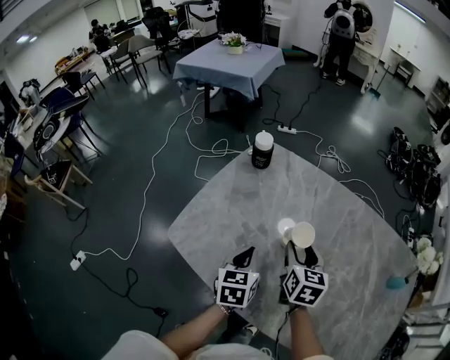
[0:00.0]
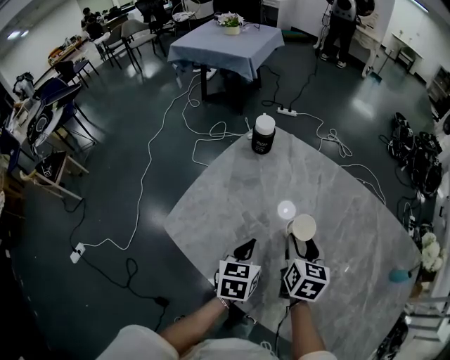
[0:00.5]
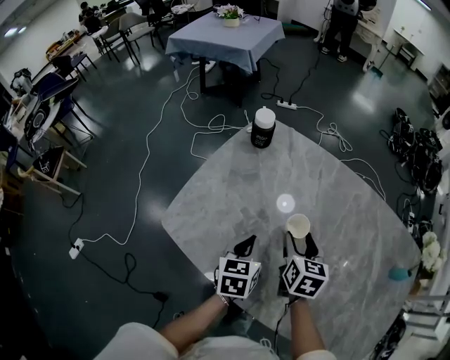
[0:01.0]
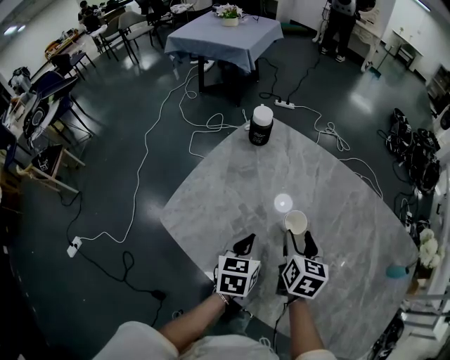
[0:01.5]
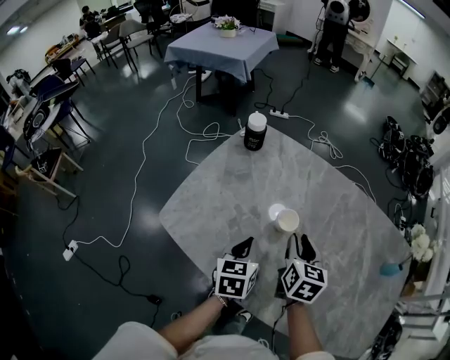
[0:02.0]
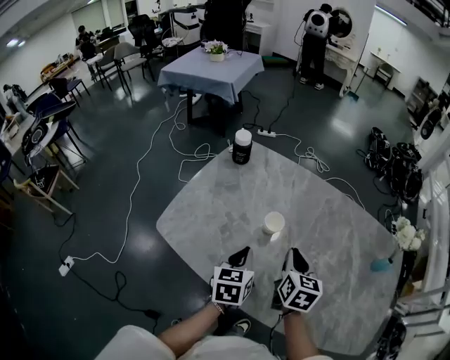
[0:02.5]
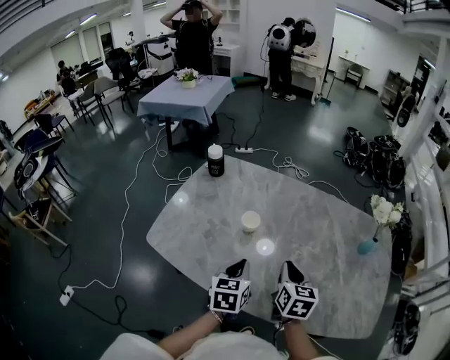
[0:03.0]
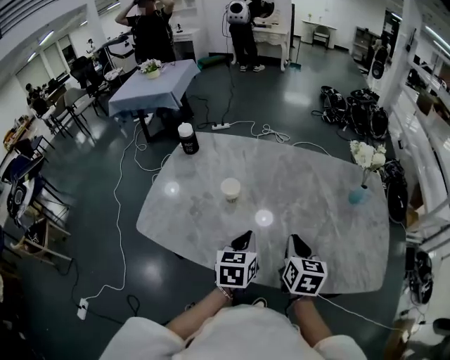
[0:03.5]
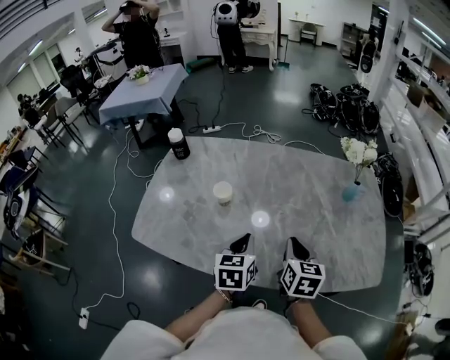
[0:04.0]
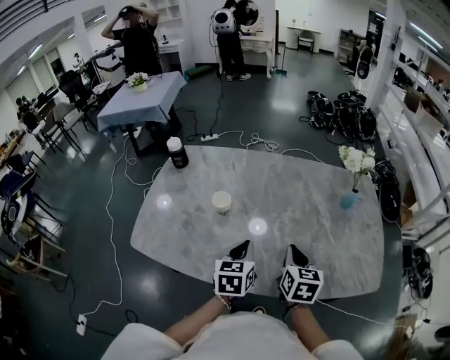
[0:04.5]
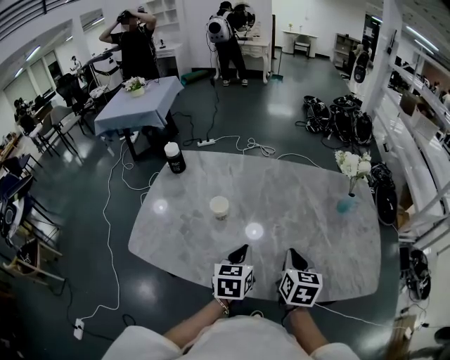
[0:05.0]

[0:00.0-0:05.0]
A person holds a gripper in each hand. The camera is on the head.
0:00.0 to 0:02.5: The right gripper goes about 10 cm backward and to the right, and closes. Meanwhile the left gripper shifts by roughly 5 cm.
0:02.5 to 0:05.0: The left gripper is displaced to the right by some 15 cm, and rotates about 20 degrees; the right gripper moves to the right and backward, about 20 cm.

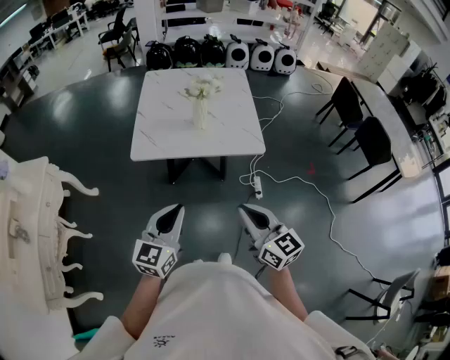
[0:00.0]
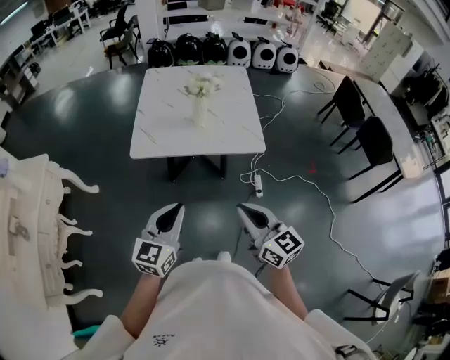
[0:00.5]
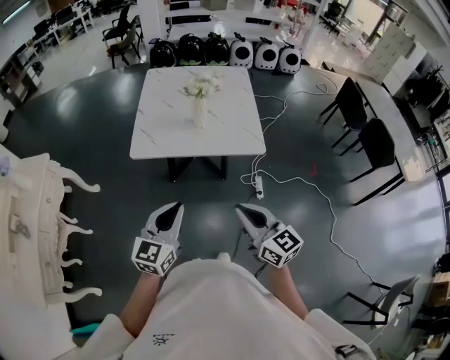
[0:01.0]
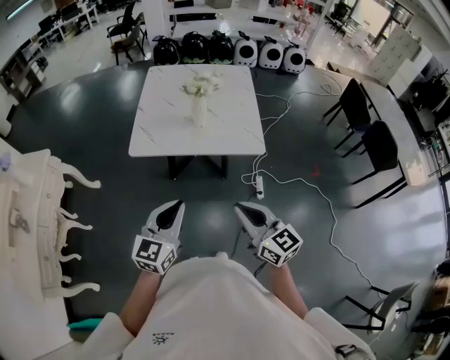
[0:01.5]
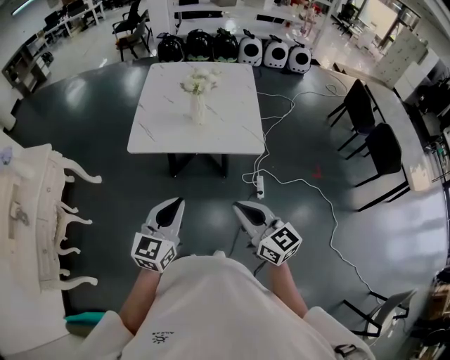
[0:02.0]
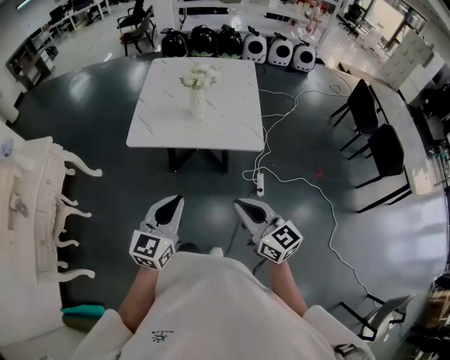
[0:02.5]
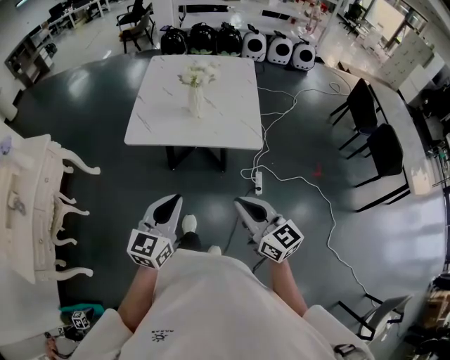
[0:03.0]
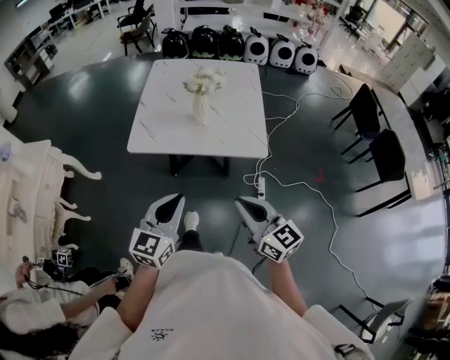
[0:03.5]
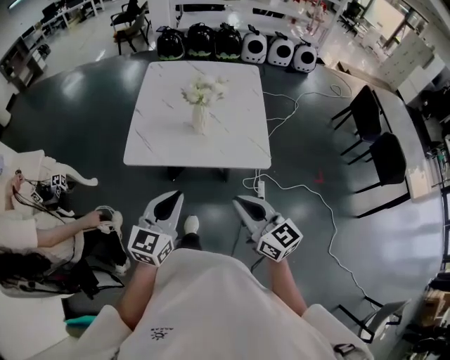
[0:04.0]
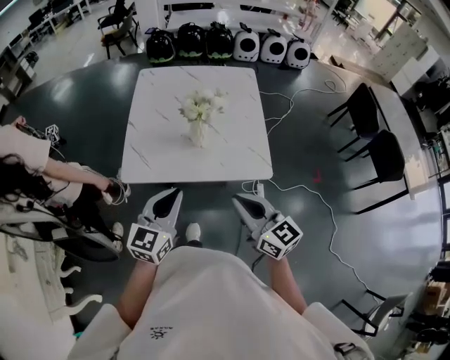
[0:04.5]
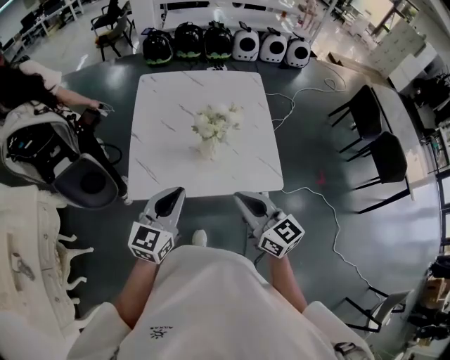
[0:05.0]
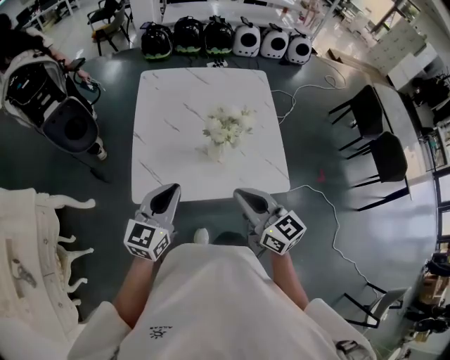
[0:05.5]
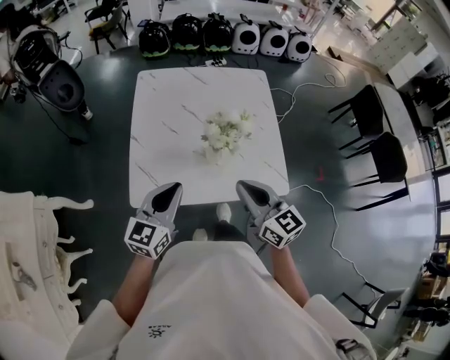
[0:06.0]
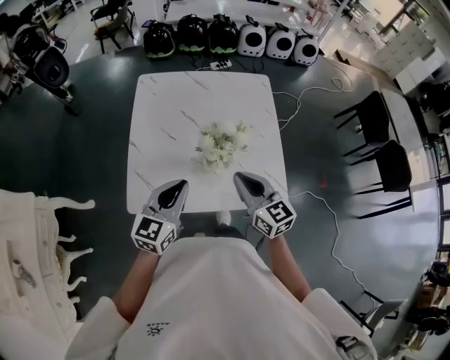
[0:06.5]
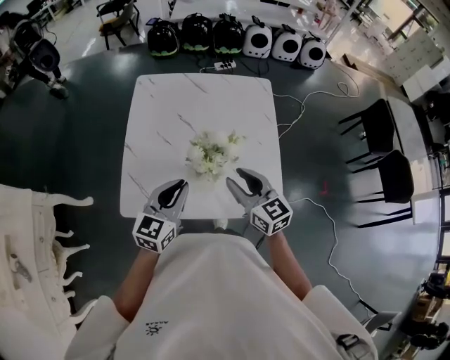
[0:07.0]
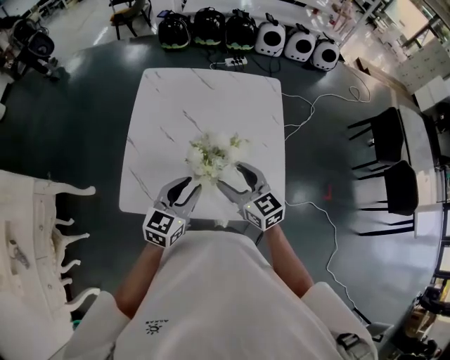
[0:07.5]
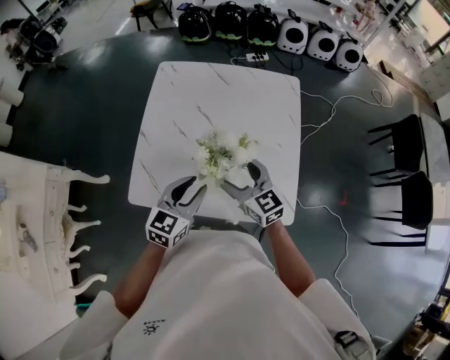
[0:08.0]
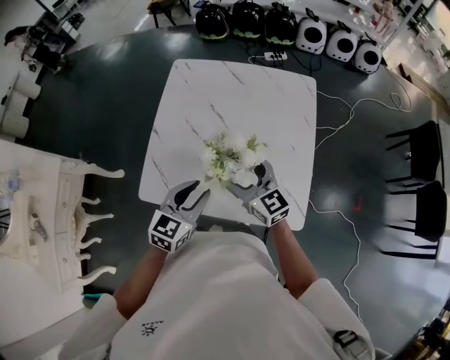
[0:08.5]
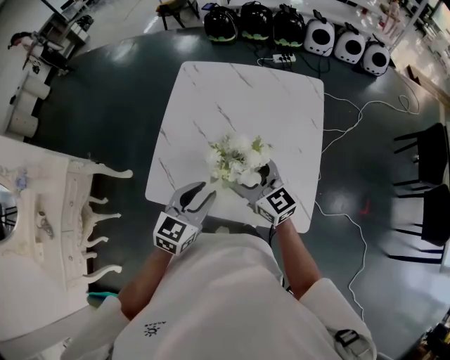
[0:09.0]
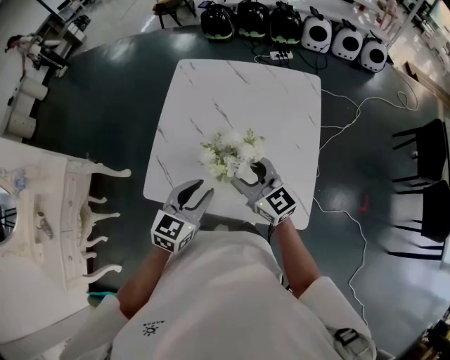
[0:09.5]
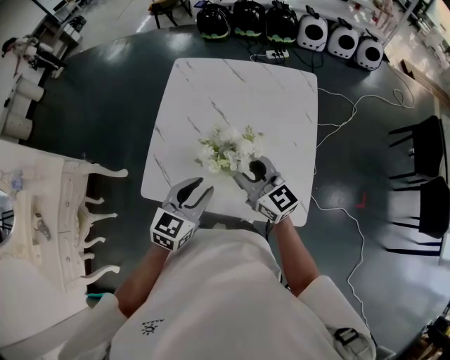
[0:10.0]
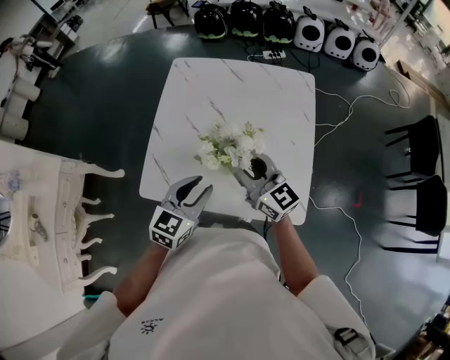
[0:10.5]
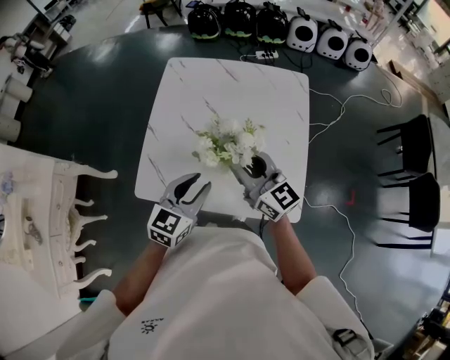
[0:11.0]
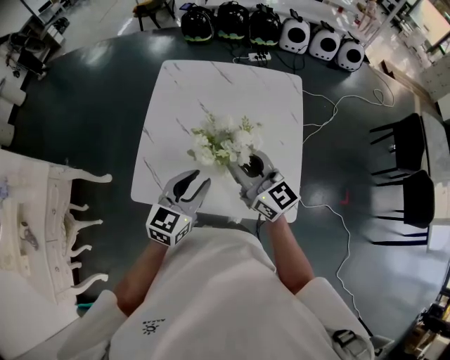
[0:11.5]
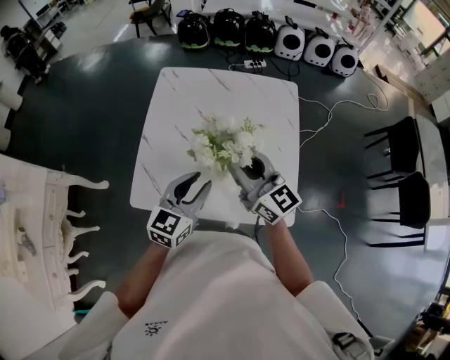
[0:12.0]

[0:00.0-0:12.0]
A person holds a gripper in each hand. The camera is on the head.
0:00.0 to 0:02.0: The grippers both shift to the right by some 5 cm.
0:02.0 to 0:04.0: The two grippers go about 10 cm forward.
0:04.0 to 0:06.0: Both grippers travel together forward, approximately 25 cm.
0:06.0 to 0:08.0: The right gripper travels forward and downward by roughly 15 cm, and opens up; the left gripper shifts about 15 cm to the right, forward and downward, and opens.
0:08.0 to 0:10.0: The right gripper closes.
0:10.0 to 0:12.0: The right gripper shifts some 5 cm upward.

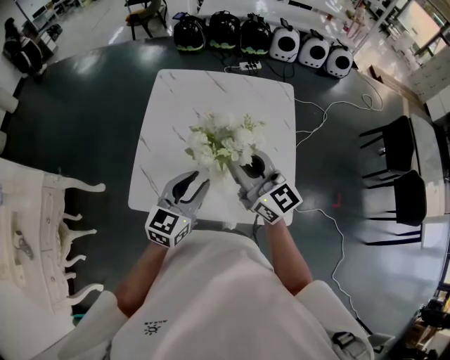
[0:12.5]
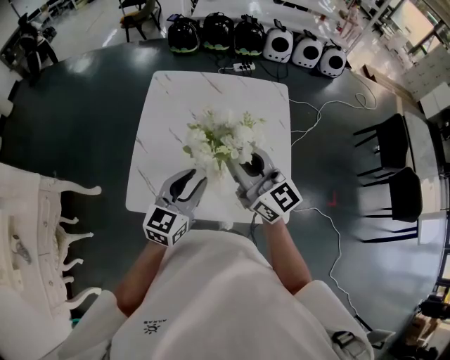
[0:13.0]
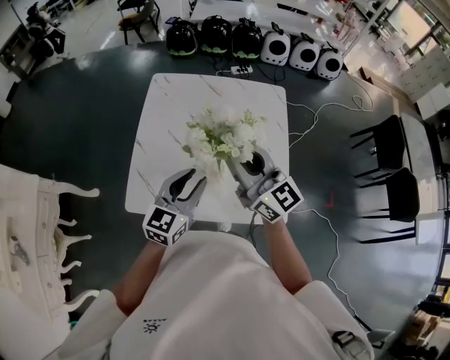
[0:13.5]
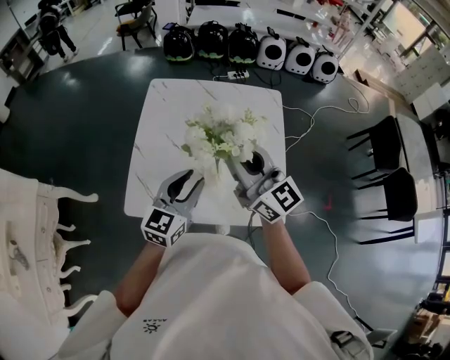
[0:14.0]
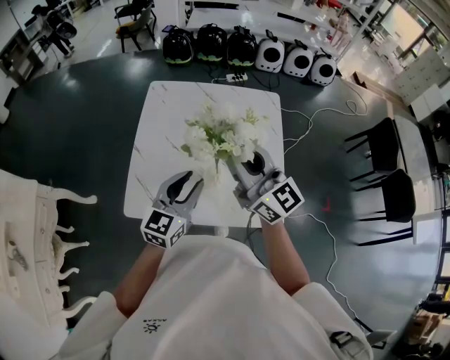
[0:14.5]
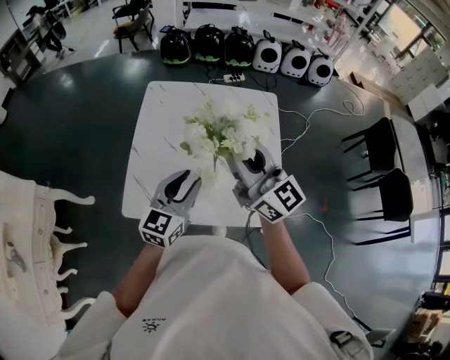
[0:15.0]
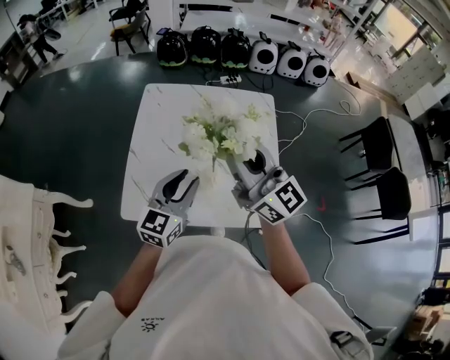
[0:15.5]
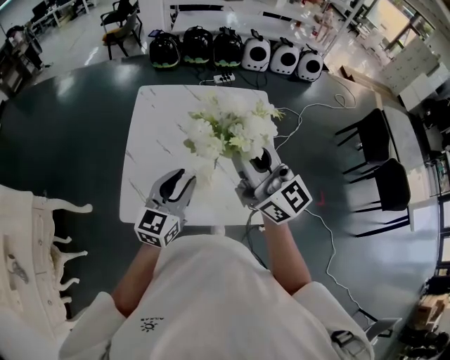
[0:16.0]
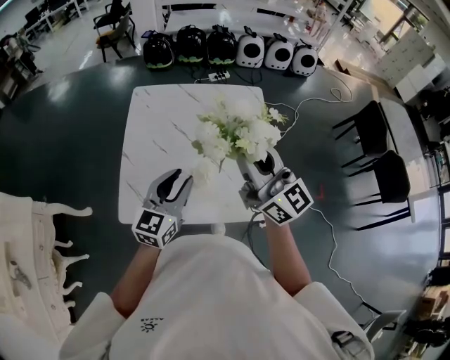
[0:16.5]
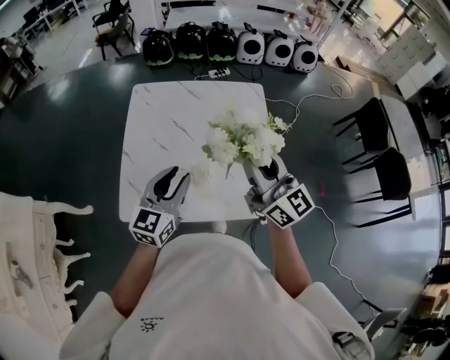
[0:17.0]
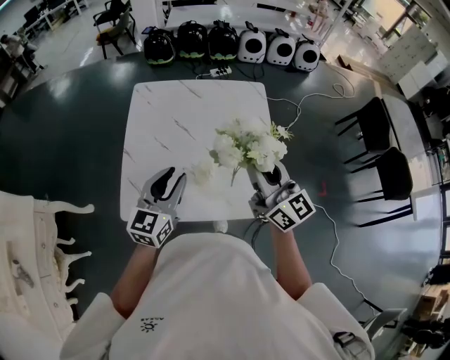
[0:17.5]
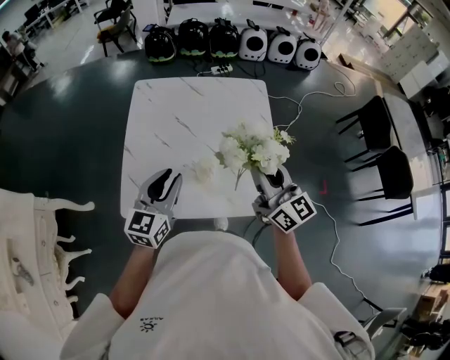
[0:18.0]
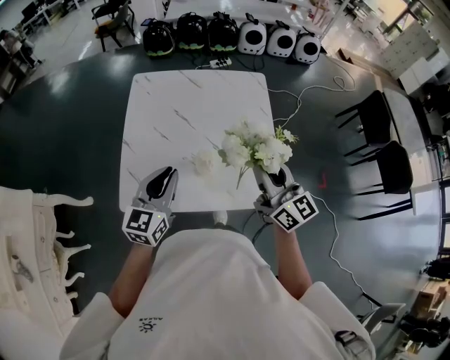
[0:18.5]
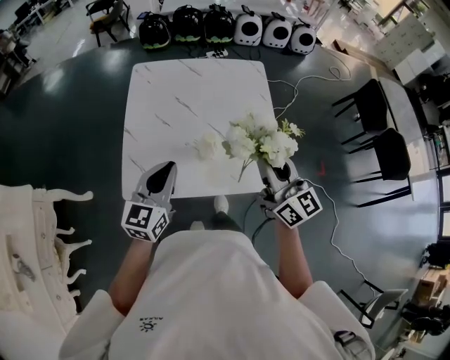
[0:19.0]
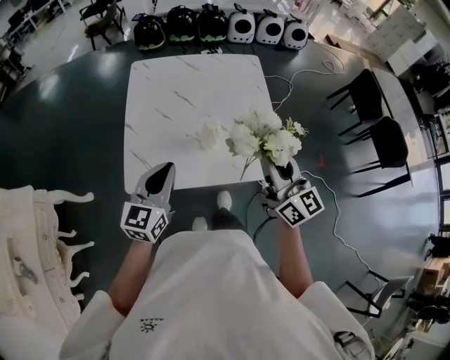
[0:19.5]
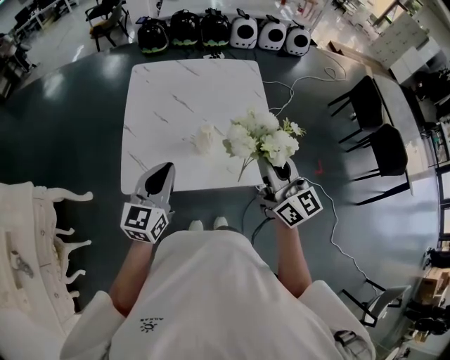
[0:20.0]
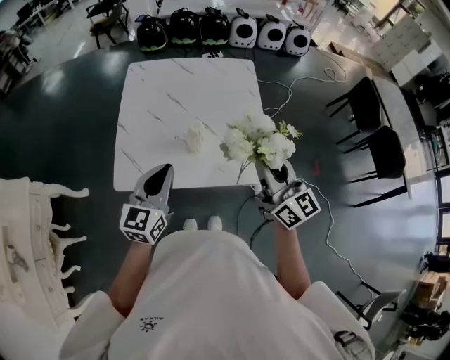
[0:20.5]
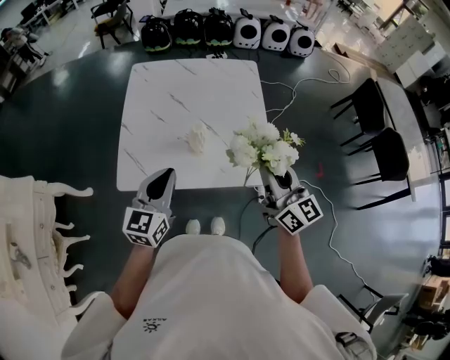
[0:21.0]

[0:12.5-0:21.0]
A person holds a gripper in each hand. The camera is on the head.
0:12.5 to 0:14.5: The right gripper goes some 5 cm upward.
0:14.5 to 0:16.5: The right gripper goes approximately 5 cm to the right.
0:16.5 to 0:19.0: The left gripper moves to the left and backward, some 10 cm, and closes its fingers. The right gripper goes roughly 10 cm downward and backward.
0:19.0 to 0:21.0: The right gripper travels backward and to the right by about 10 cm. Meanwhile the left gripper travels backward by some 5 cm.

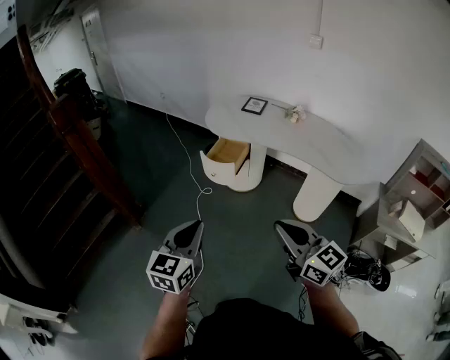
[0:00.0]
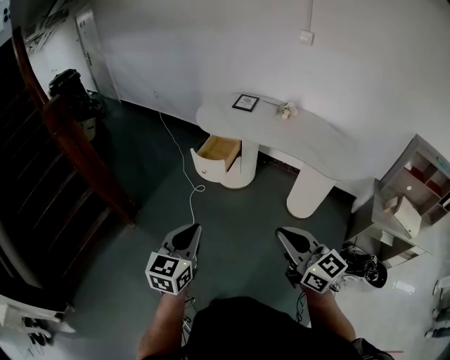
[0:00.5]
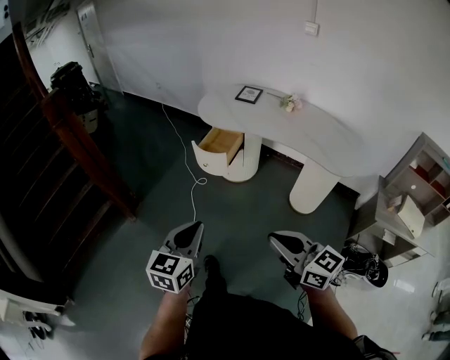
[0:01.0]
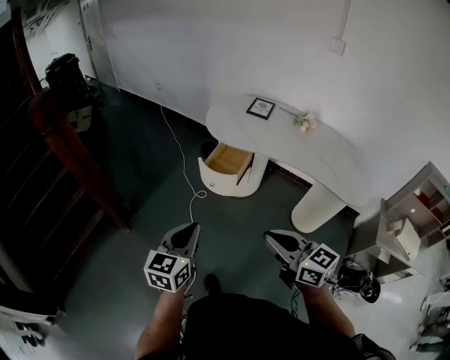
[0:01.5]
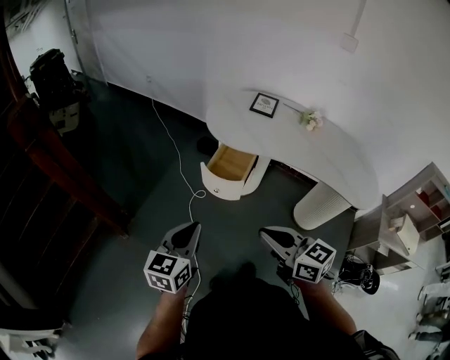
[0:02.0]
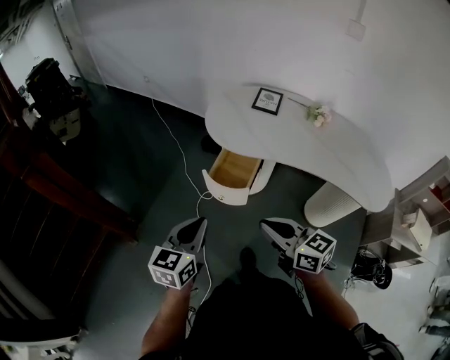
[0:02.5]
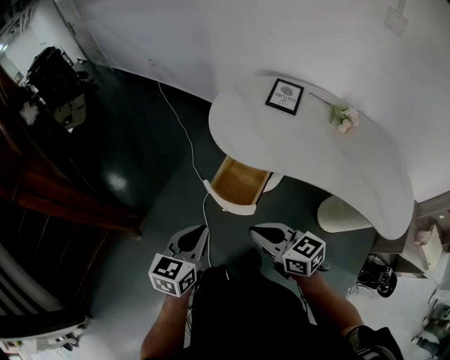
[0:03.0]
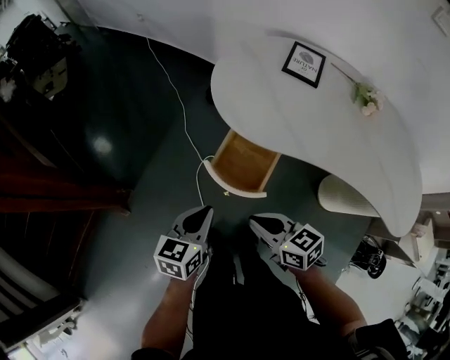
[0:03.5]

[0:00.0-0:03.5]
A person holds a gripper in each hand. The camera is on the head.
0:00.0 to 0:02.0: The grippers both shift forward by about 25 cm.
0:02.0 to 0:03.5: The grippers both shift forward and downward by approximately 35 cm. The right gripper changes its angle by roughly 20 degrees.
